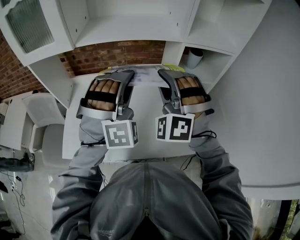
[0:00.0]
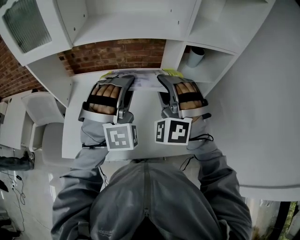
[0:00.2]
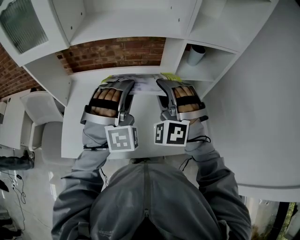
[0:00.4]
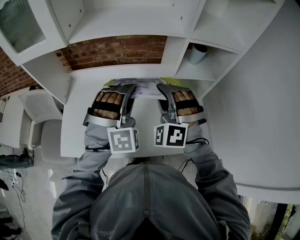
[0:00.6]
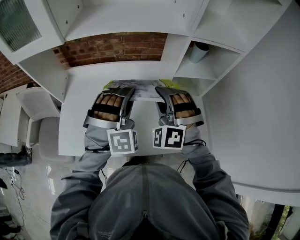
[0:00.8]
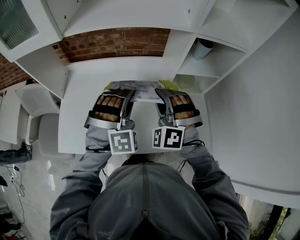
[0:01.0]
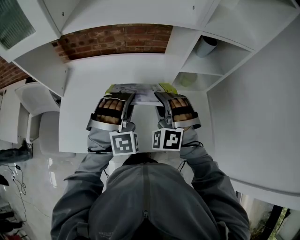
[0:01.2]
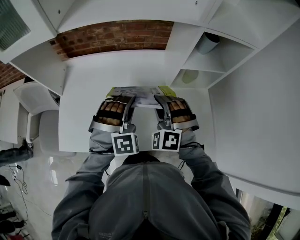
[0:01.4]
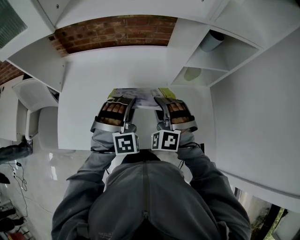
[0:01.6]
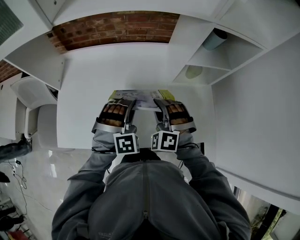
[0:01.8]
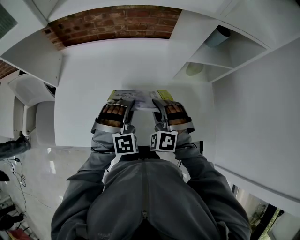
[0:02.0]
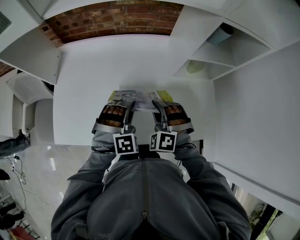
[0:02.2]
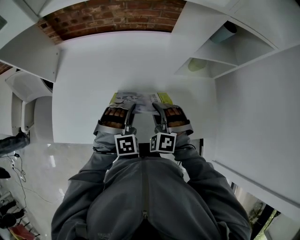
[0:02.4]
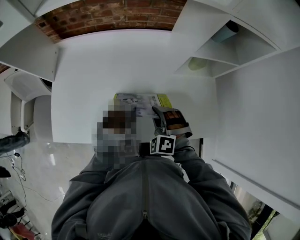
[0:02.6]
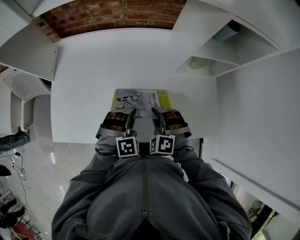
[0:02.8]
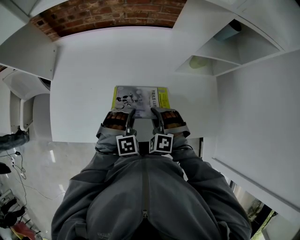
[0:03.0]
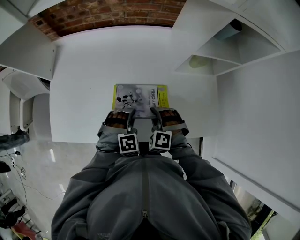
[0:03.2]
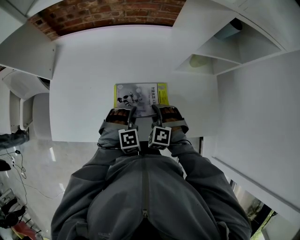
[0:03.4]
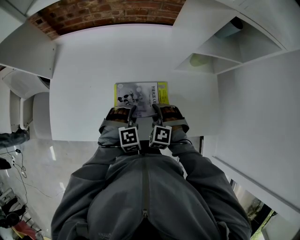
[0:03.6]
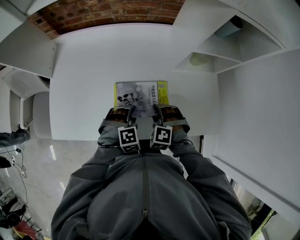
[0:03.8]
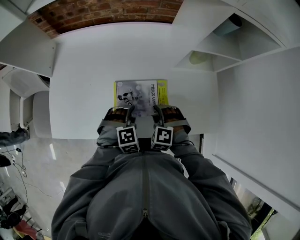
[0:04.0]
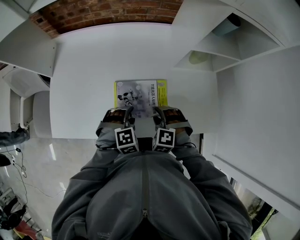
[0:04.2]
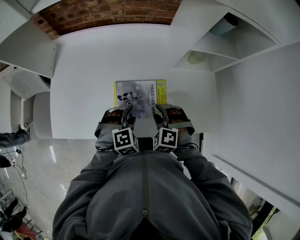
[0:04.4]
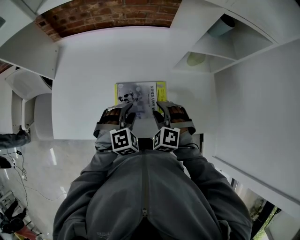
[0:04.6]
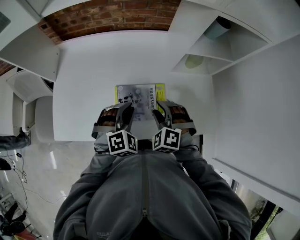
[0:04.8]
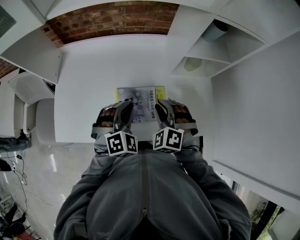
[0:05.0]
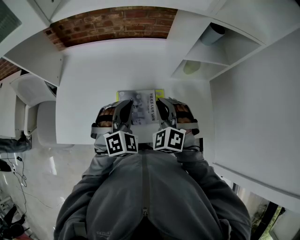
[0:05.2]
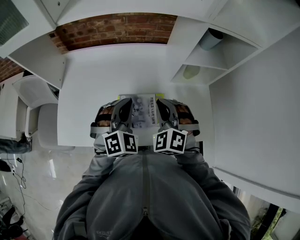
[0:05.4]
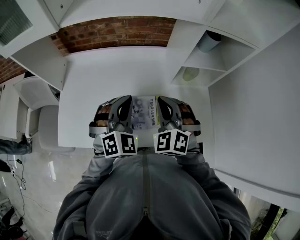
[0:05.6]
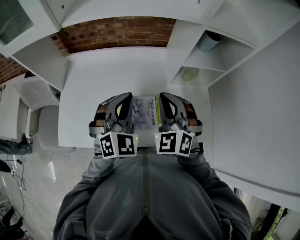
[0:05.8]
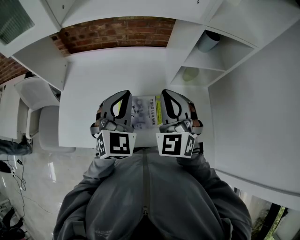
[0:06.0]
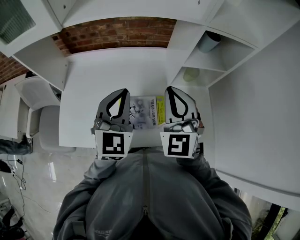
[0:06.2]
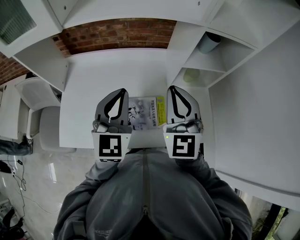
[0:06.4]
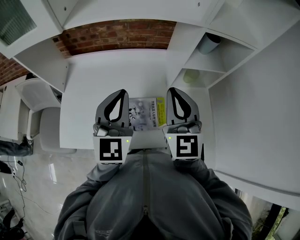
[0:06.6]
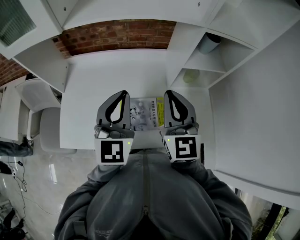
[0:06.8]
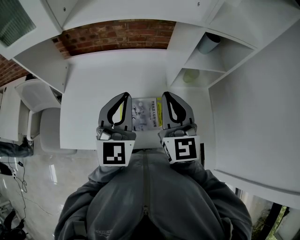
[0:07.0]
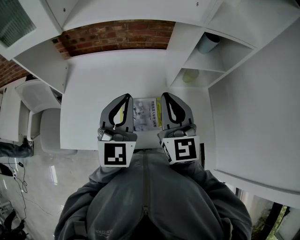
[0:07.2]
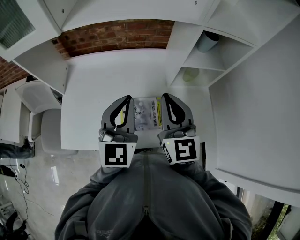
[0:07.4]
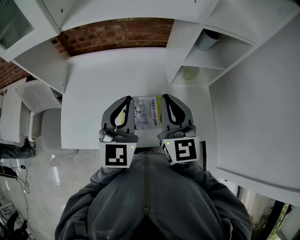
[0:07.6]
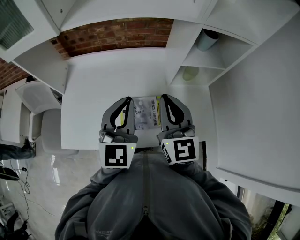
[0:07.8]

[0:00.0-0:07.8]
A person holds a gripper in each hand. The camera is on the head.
0:00.0 to 0:01.6: Both grippers move downward, some 25 cm. The left gripper swivels roughly 30 degrees; the right gripper turns by approximately 20 degrees.
0:01.6 to 0:03.2: The two grippers go some 15 cm downward. The right gripper changes its angle by about 20 degrees; the left gripper swivels about 30 degrees.
0:03.2 to 0:04.6: The right gripper changes place by approximately 5 cm, and opens up. Meanwhile the left gripper is displaced upward by some 5 cm, and opens.
0:04.6 to 0:06.2: The grippers both shift upward by roughly 25 cm. The right gripper tips its fingers upward by roughly 40 degrees, and closes up; the left gripper angles its fingers upward, by about 40 degrees, and closes.
0:06.2 to 0:07.8: The right gripper changes its angle by some 30 degrees.

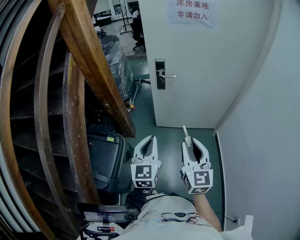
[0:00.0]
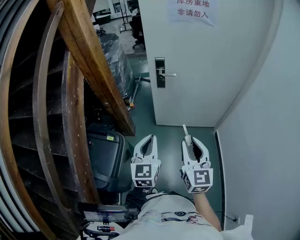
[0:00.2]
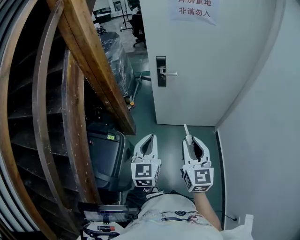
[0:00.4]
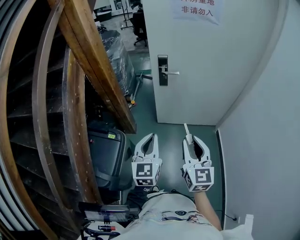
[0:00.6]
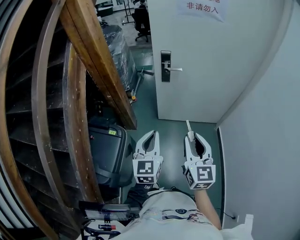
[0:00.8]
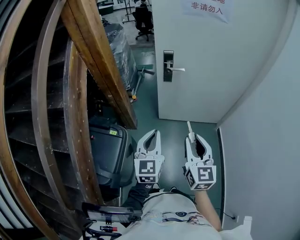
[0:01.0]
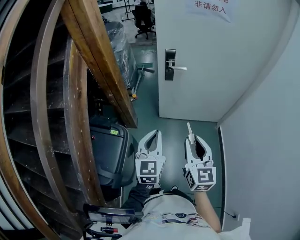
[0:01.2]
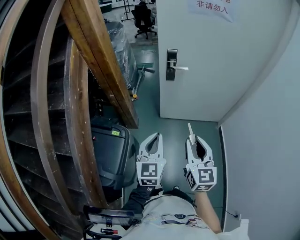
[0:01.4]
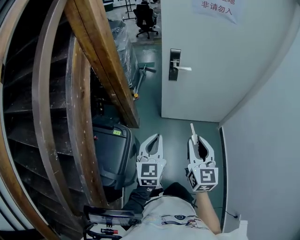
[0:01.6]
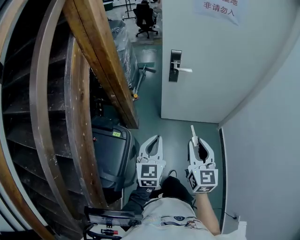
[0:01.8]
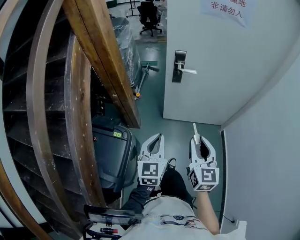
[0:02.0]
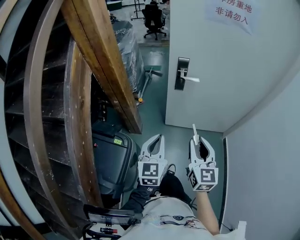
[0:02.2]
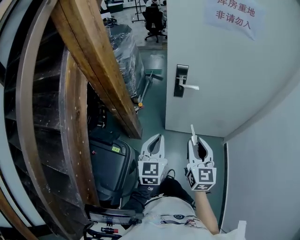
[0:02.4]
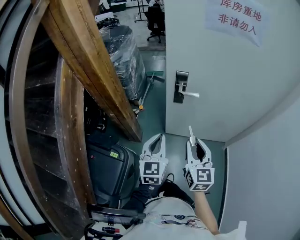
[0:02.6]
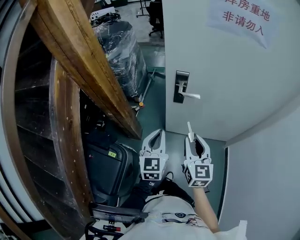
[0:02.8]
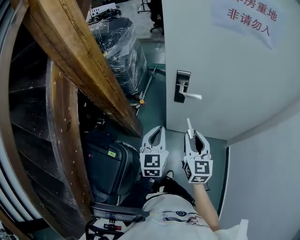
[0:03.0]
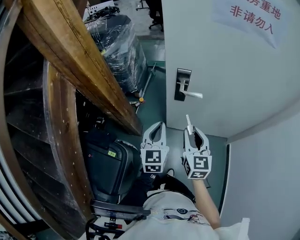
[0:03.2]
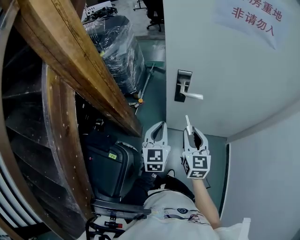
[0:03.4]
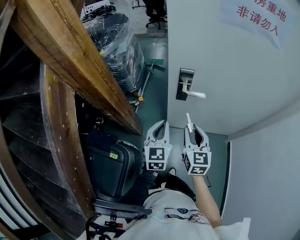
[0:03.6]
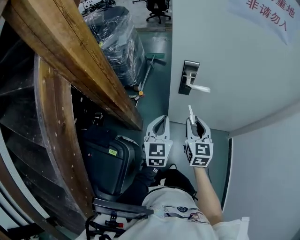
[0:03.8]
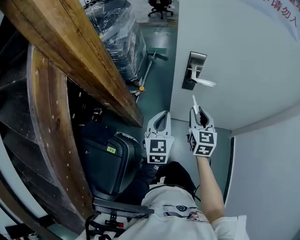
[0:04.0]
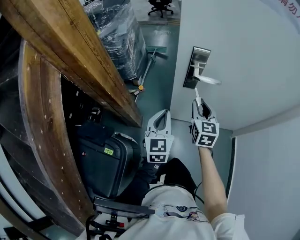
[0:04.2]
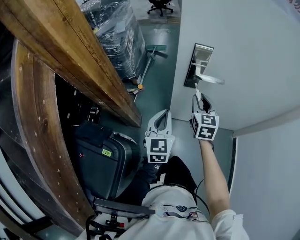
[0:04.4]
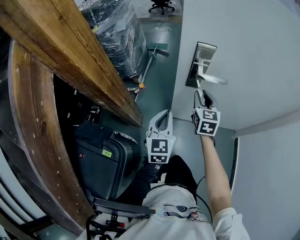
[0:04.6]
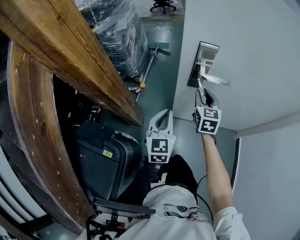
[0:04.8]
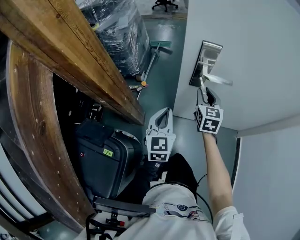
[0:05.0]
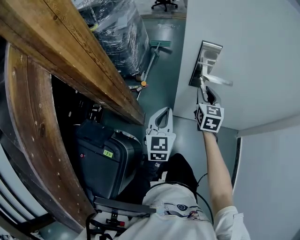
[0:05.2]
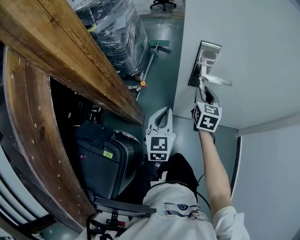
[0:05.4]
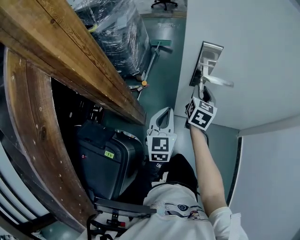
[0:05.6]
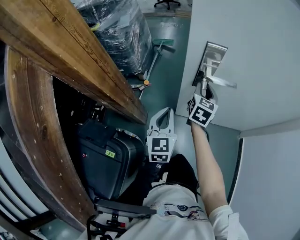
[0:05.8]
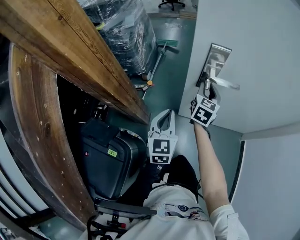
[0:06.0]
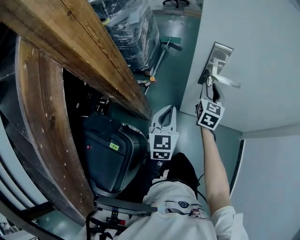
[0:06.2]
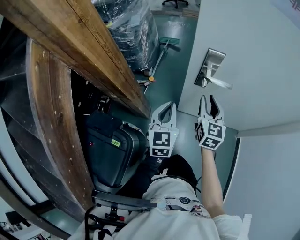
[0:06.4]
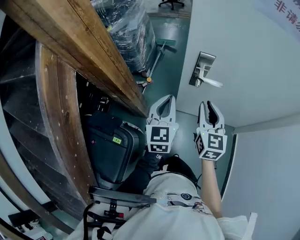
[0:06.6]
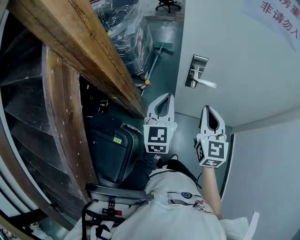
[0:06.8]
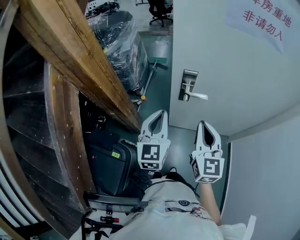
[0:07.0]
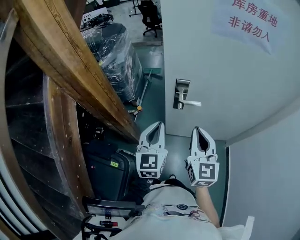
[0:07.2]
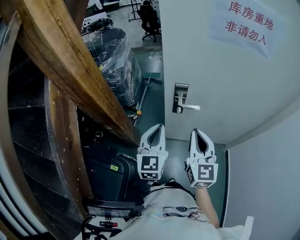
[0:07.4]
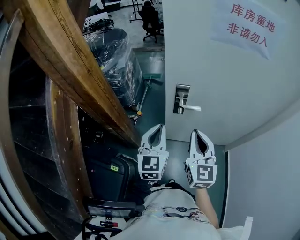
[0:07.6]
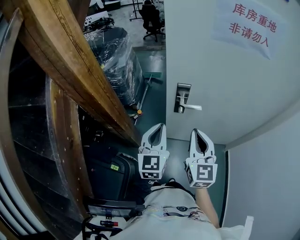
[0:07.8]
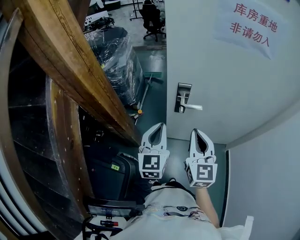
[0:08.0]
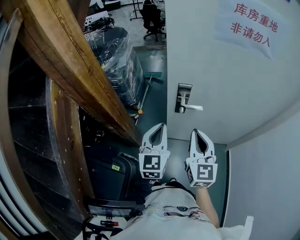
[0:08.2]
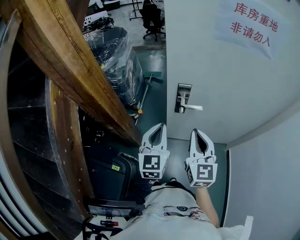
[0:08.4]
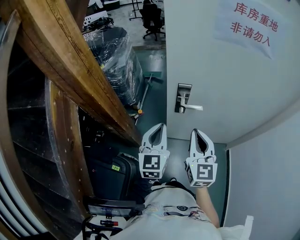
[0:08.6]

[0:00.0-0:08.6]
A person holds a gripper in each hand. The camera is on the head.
0:00.0 to 0:01.4: The two grippers go about 5 cm to the left.
0:01.4 to 0:02.8: Both grippers move forward, about 25 cm.
0:02.8 to 0:04.4: The right gripper travels forward and downward by some 30 cm. Meanwhile the left gripper travels downward and forward by approximately 20 cm.
0:04.4 to 0:05.8: The right gripper moves forward, approximately 5 cm.
0:05.8 to 0:07.2: The right gripper moves upward and backward, some 35 cm, rotates approximately 20 degrees, and closes its fingers; the left gripper shifts some 25 cm upward.
0:07.2 to 0:08.6: There are only small adjustments of the grippers.

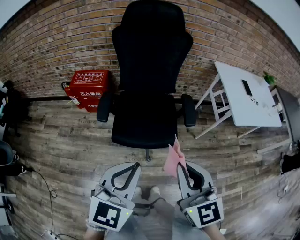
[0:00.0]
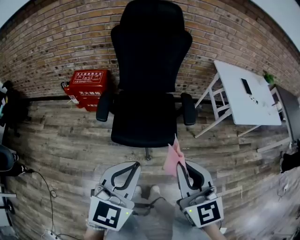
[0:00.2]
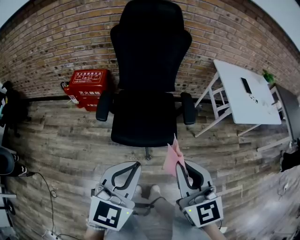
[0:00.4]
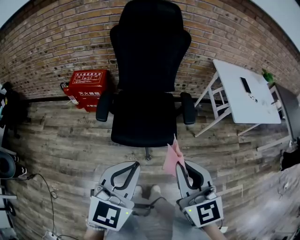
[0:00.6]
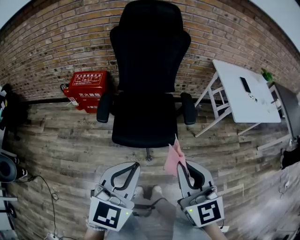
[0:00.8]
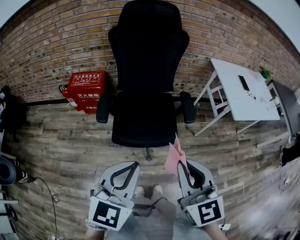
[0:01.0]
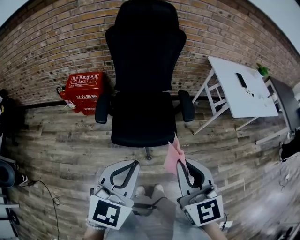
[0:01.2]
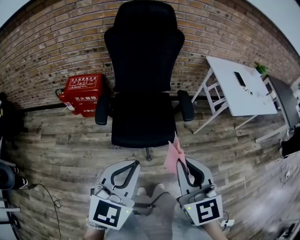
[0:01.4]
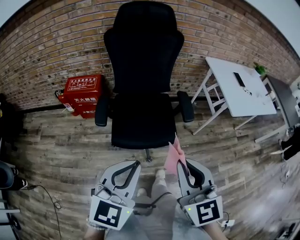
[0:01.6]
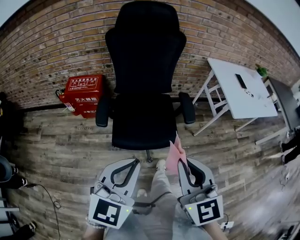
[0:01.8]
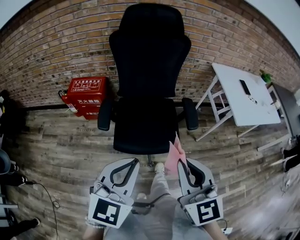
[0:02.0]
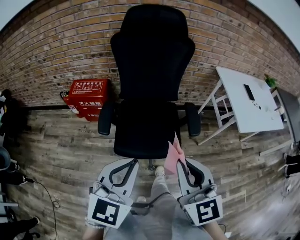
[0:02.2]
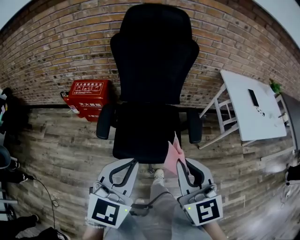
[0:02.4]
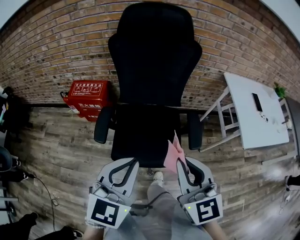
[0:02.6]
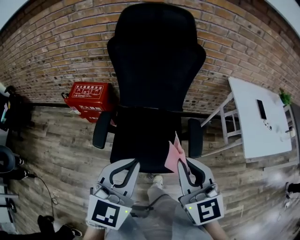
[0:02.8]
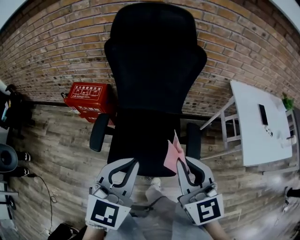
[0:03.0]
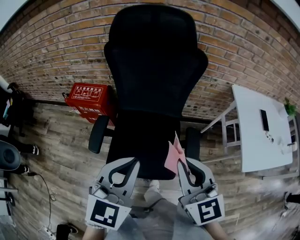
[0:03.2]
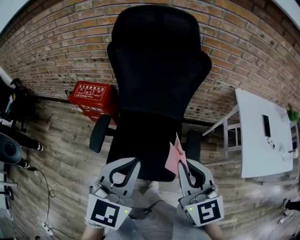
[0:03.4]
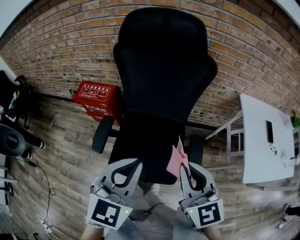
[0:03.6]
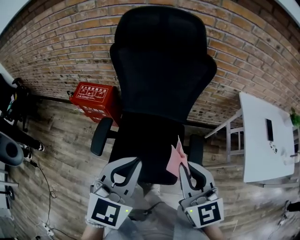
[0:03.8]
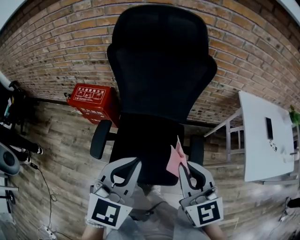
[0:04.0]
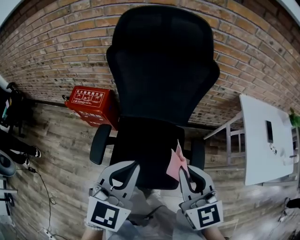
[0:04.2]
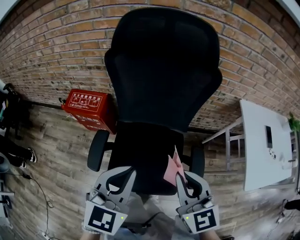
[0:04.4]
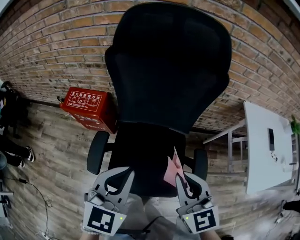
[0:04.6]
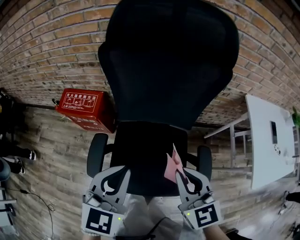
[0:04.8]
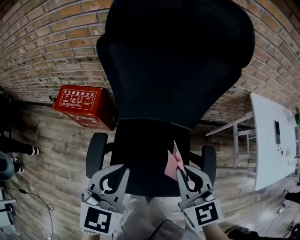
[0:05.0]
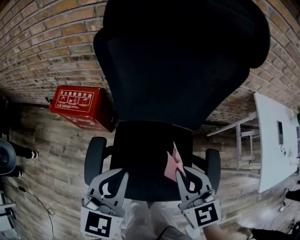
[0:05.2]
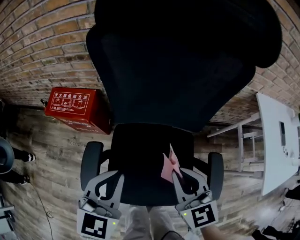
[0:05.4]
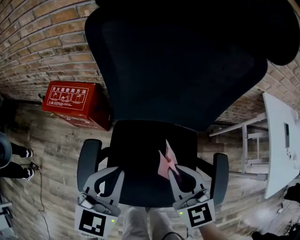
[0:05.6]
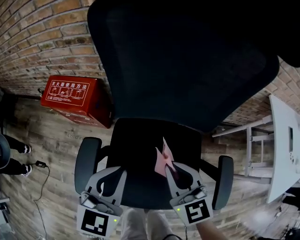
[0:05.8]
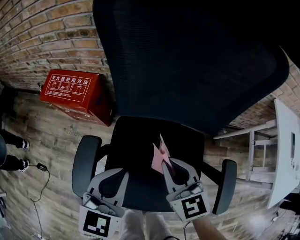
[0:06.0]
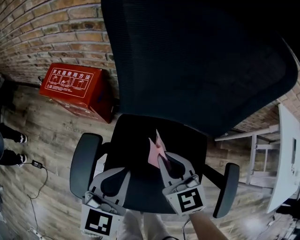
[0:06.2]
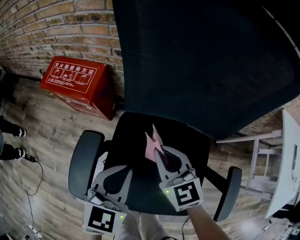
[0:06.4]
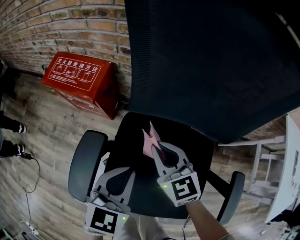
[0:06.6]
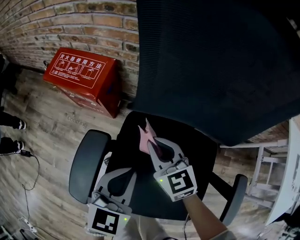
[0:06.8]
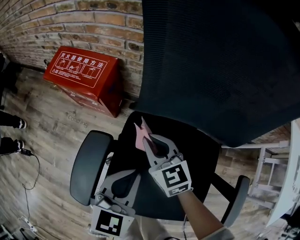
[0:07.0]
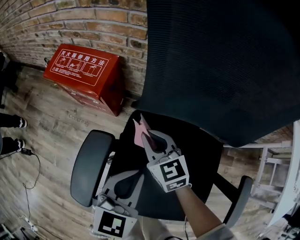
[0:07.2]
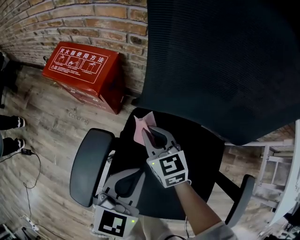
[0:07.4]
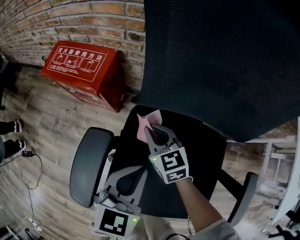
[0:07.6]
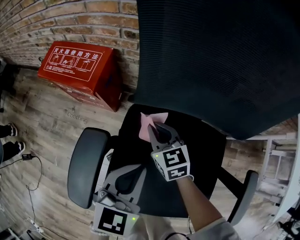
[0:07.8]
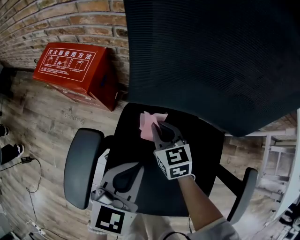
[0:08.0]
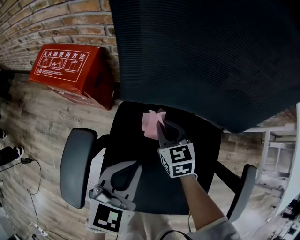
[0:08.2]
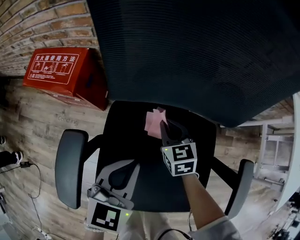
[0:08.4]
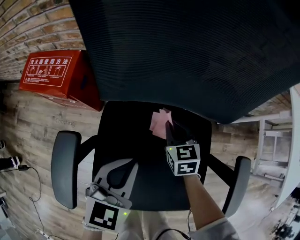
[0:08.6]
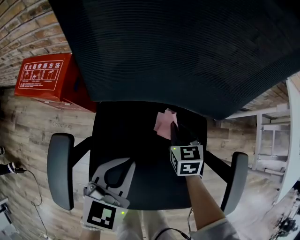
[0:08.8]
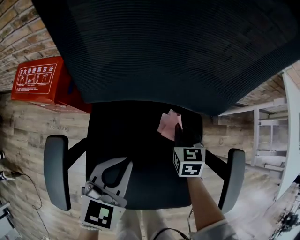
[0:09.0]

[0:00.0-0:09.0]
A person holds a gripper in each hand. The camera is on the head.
0:00.0 to 0:01.6: The grippers move only a little.
0:01.6 to 0:03.0: The grippers both shift forward by approximately 30 cm.
0:03.0 to 0:04.4: The two grippers go roughly 10 cm forward.
0:04.4 to 0:06.0: The left gripper goes some 30 cm downward and forward; the right gripper heads downward, forward and to the left, covering about 35 cm.
0:06.0 to 0:07.6: The right gripper goes approximately 25 cm downward, to the left and forward; the left gripper shifts approximately 10 cm downward.
0:07.6 to 0:09.0: The left gripper ends up some 10 cm from where it was. The right gripper moves some 30 cm, and swivels roughly 40 degrees.
